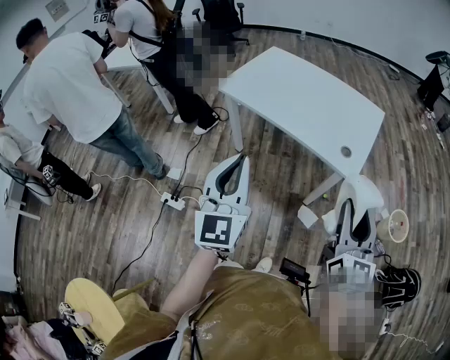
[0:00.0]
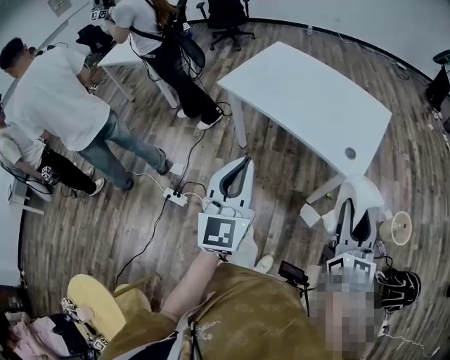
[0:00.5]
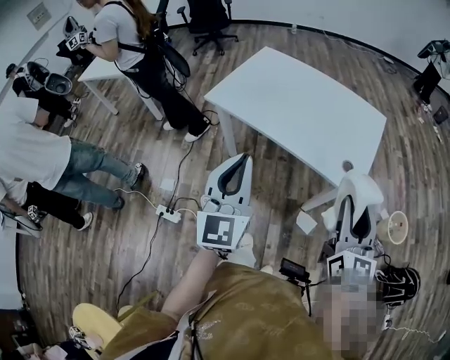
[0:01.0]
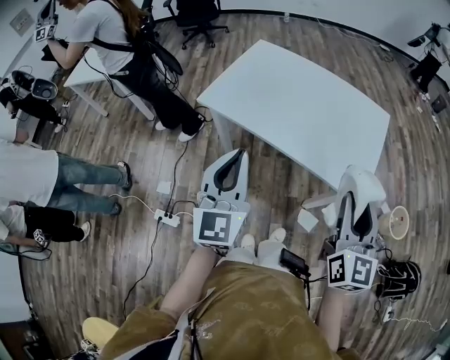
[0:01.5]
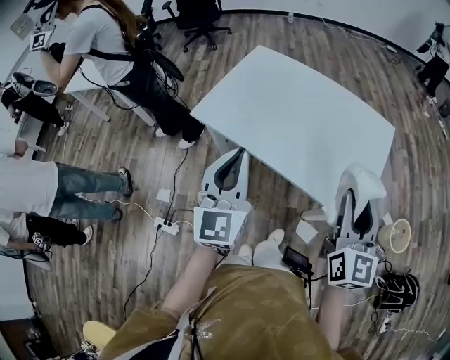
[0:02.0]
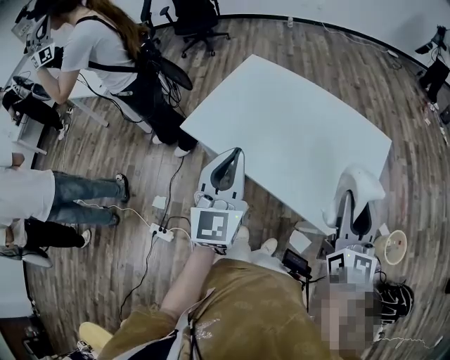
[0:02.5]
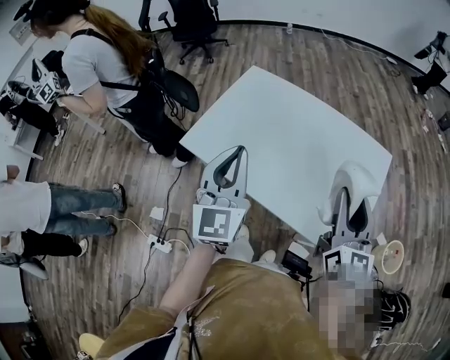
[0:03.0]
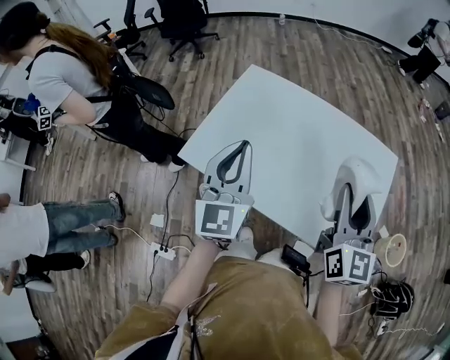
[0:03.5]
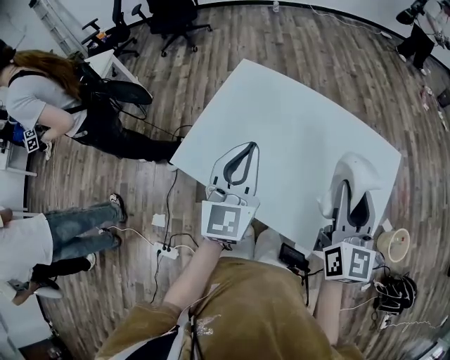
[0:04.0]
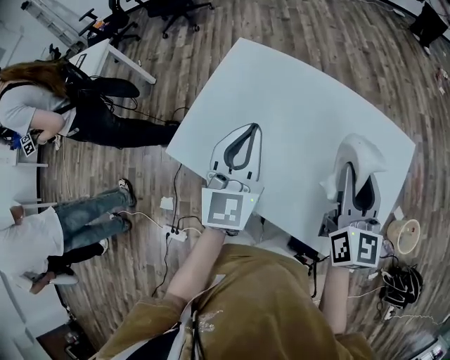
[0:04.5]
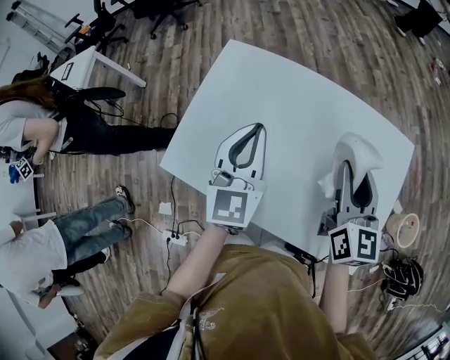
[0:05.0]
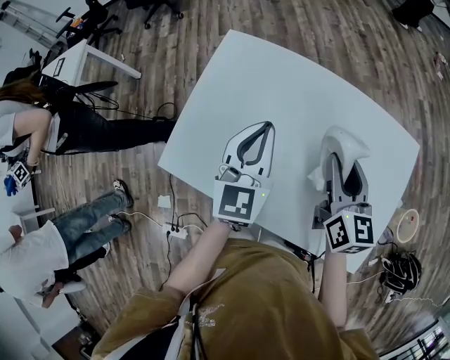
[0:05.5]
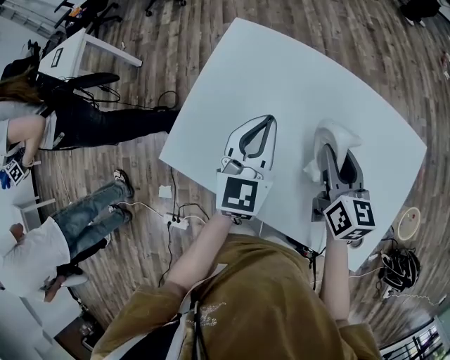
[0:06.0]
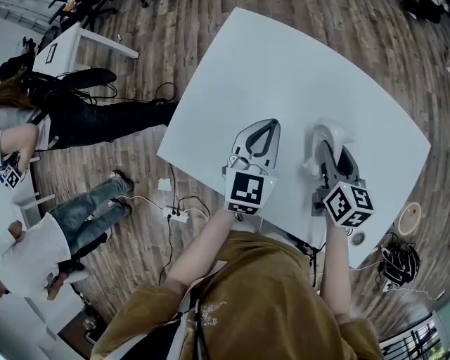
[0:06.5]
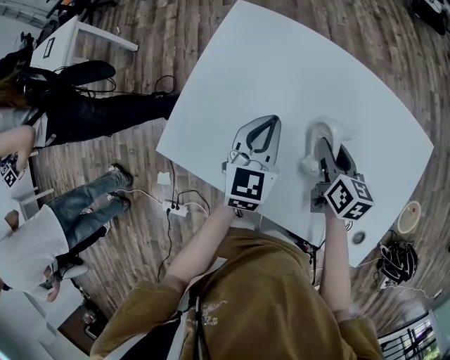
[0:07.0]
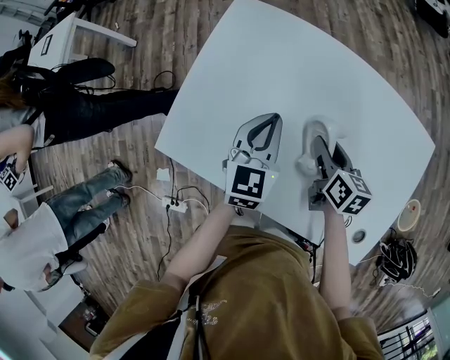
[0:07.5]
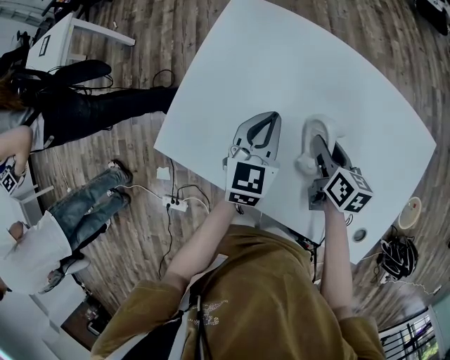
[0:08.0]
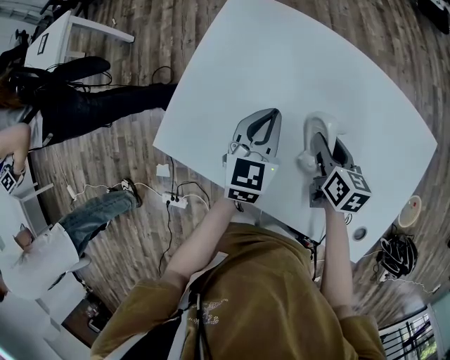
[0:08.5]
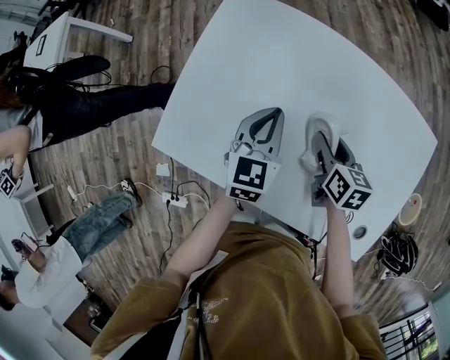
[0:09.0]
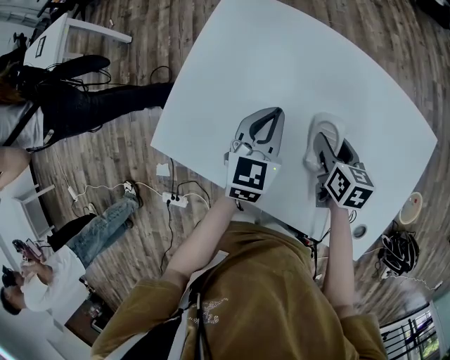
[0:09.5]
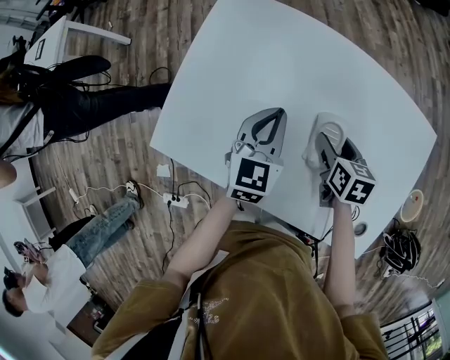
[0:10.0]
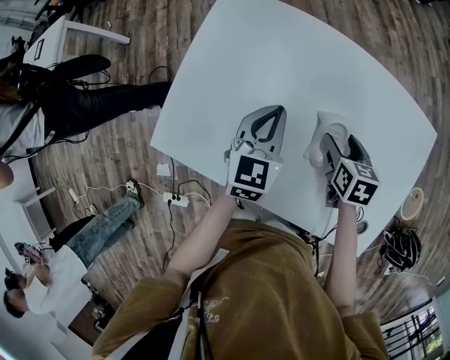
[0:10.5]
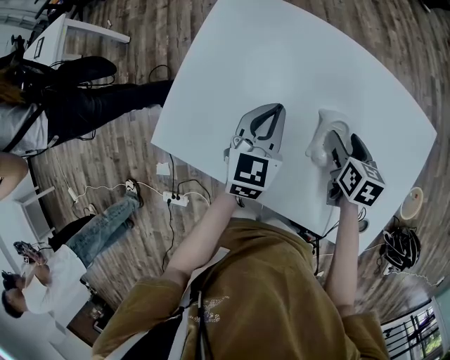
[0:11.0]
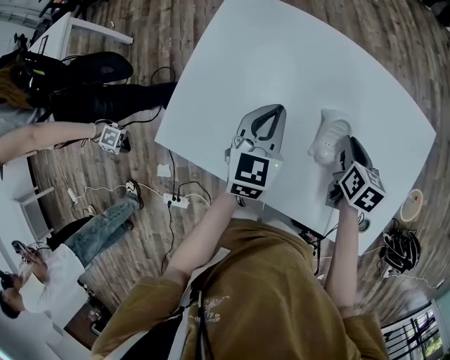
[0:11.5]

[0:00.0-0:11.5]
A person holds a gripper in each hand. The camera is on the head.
0:00.0 to 0:02.0: Both grippers move forward, roughly 30 cm.
0:02.0 to 0:04.0: Both grippers travel together forward, approximately 25 cm.
0:04.0 to 0:06.0: The right gripper travels downward and forward by roughly 20 cm, and turns by about 30 degrees. The left gripper travels forward and downward by some 20 cm.
0:06.0 to 0:07.5: Both grippers move downward, approximately 10 cm. The right gripper rotates approximately 20 degrees.
0:07.5 to 0:09.5: The grippers move only a little.
0:09.5 to 0:11.5: The right gripper travels to the right by roughly 5 cm, and closes.

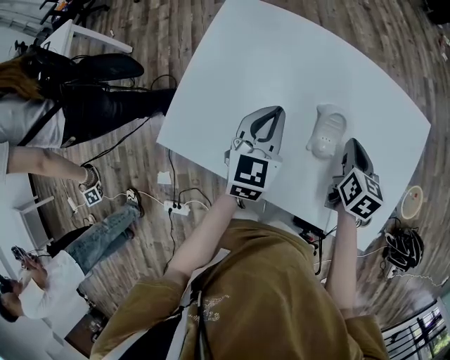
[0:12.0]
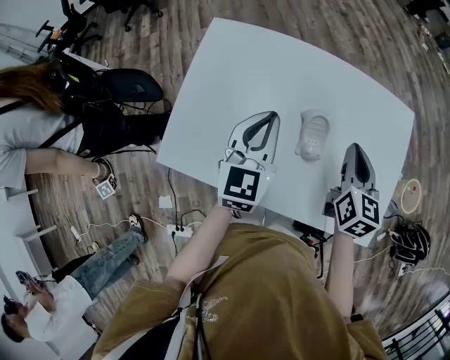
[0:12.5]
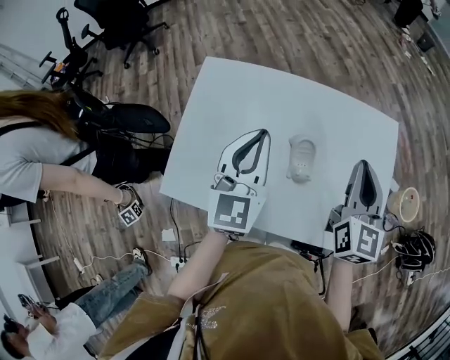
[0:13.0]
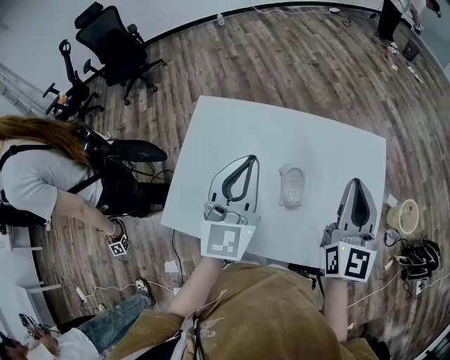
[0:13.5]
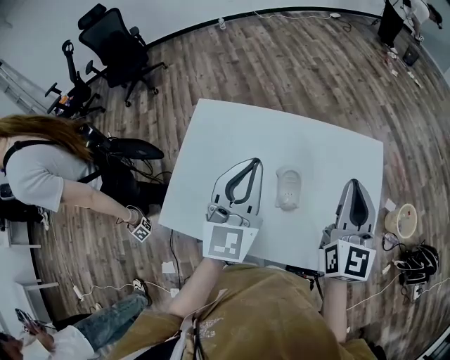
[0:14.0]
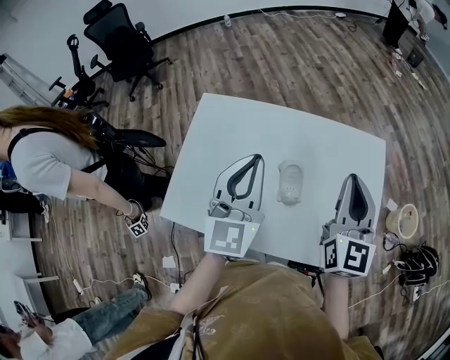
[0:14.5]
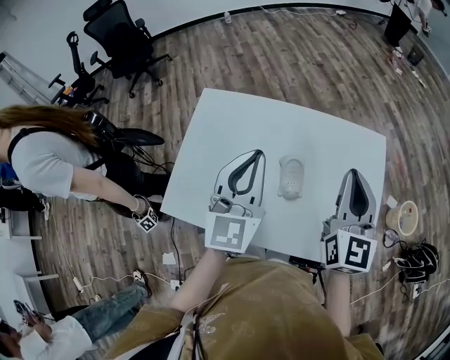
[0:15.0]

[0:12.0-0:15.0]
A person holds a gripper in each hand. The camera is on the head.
0:12.0 to 0:13.5: The grippers both shift upward by some 25 cm. The left gripper swivels roughly 20 degrees; the right gripper tips its fingers upward by some 40 degrees.
0:13.5 to 0:15.0: There are only small adjustments of the grippers.

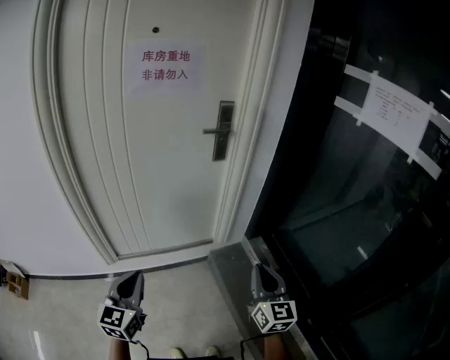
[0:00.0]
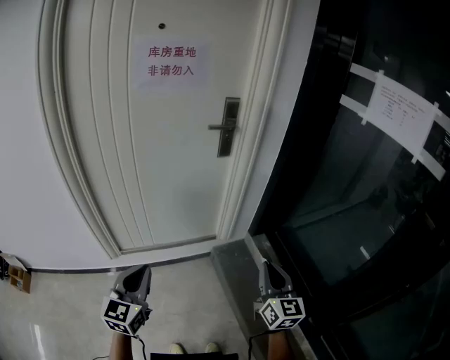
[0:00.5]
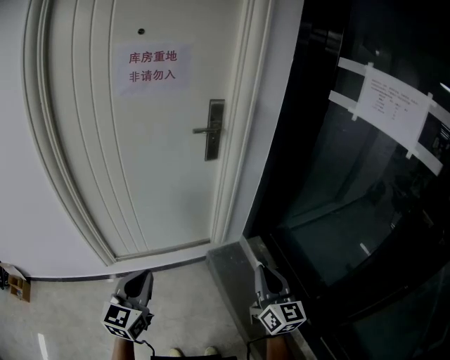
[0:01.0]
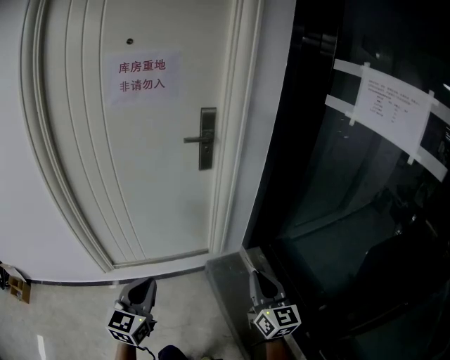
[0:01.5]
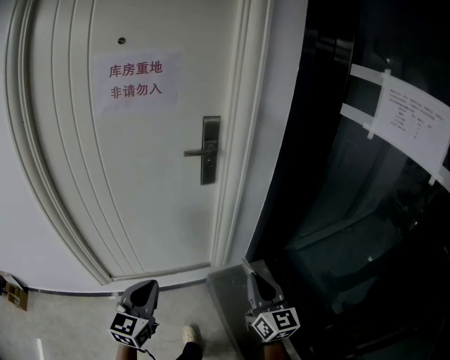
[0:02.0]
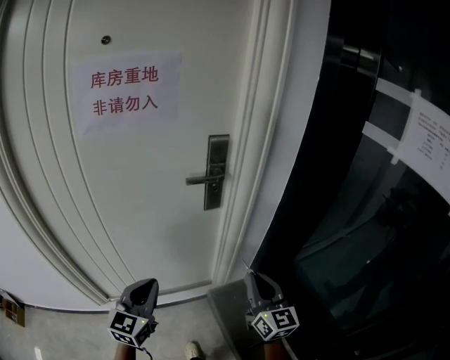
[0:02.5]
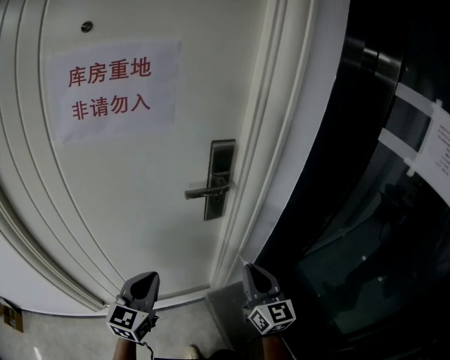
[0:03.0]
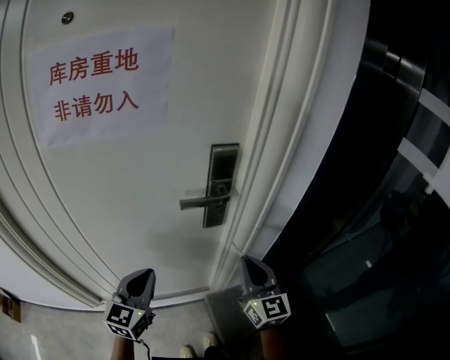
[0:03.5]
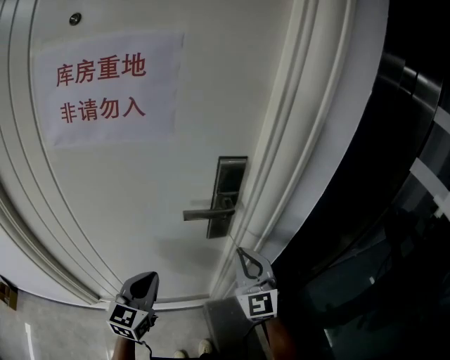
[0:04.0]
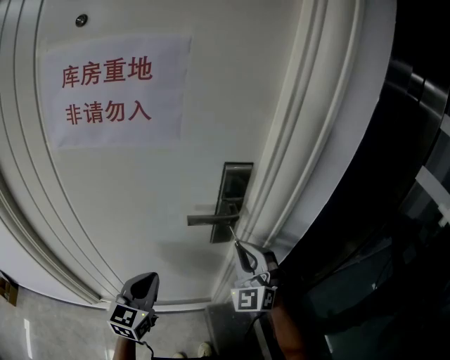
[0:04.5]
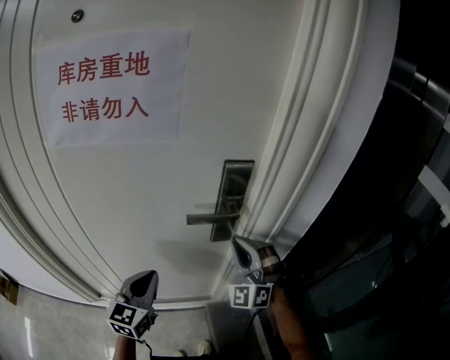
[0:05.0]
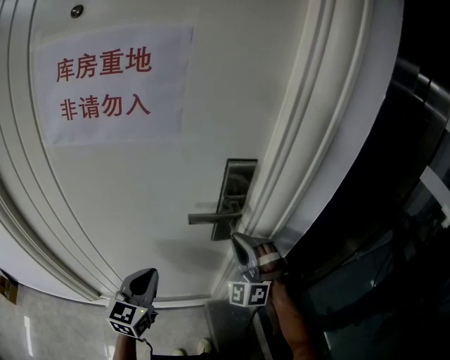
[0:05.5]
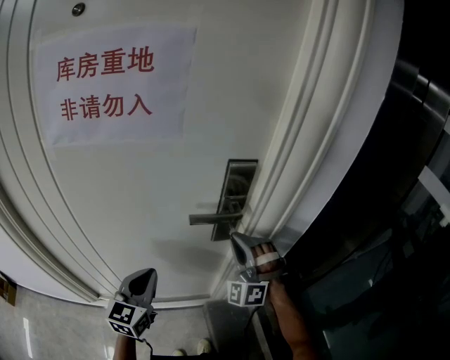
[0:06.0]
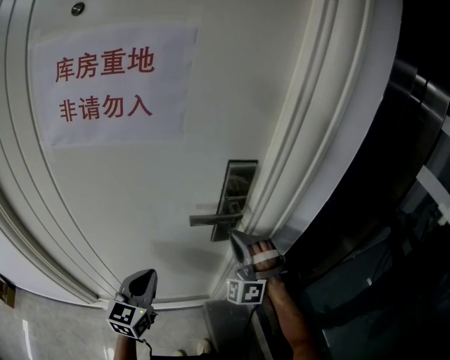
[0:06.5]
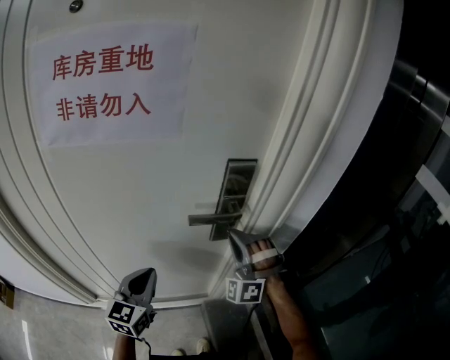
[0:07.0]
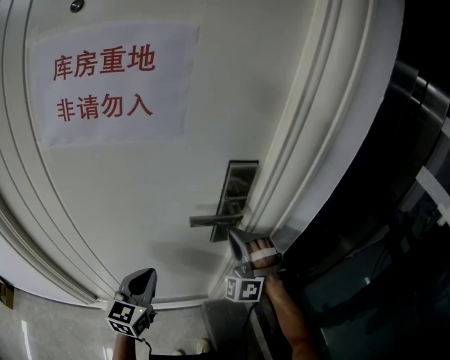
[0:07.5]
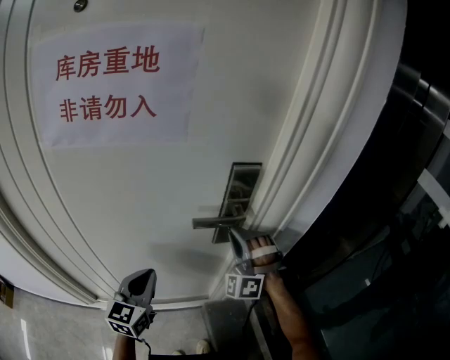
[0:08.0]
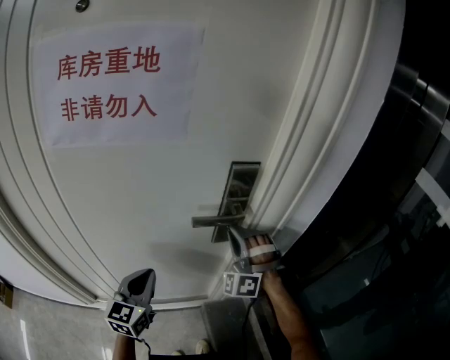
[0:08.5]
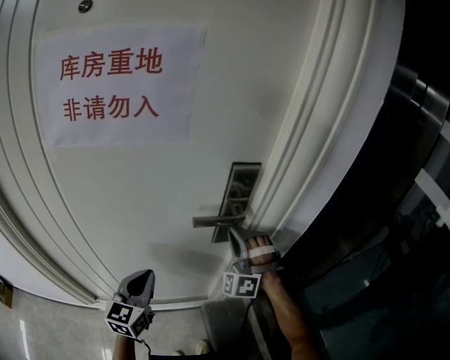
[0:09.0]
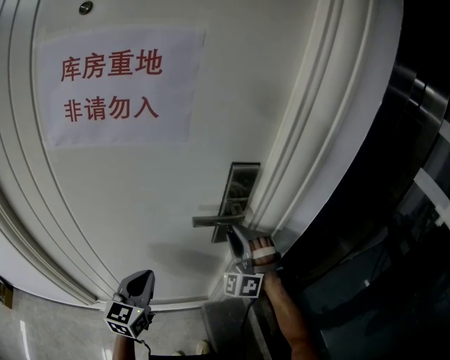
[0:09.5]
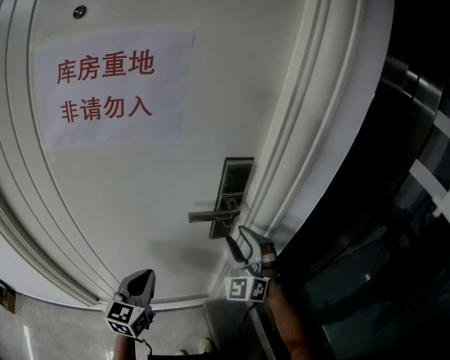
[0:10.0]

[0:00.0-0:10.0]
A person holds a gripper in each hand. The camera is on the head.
0:00.0 to 0:02.0: Both grippers travel together forward and to the right, roughly 15 cm.
0:02.0 to 0:04.0: The grippers both shift forward by approximately 35 cm. The right gripper changes its angle by some 40 degrees.
0:04.0 to 0:06.0: The right gripper moves forward, roughly 5 cm, and rolls counterclockwise, seen from behind, by about 50 degrees.
0:06.0 to 0:08.0: The grippers move only a little.
0:08.0 to 0:10.0: The right gripper rotates roughly 30 degrees, and opens up.

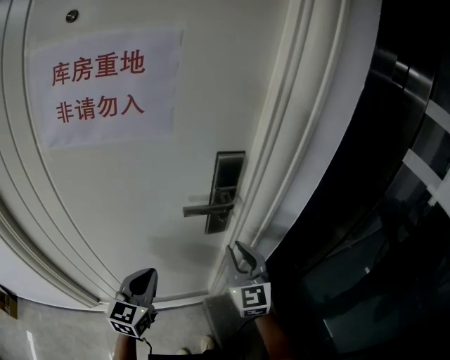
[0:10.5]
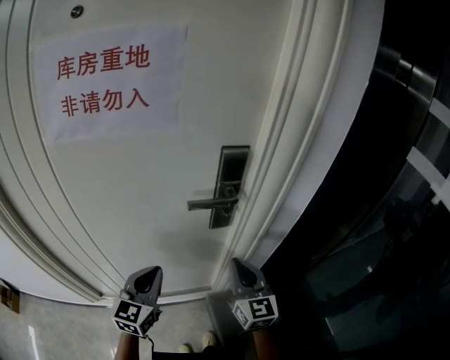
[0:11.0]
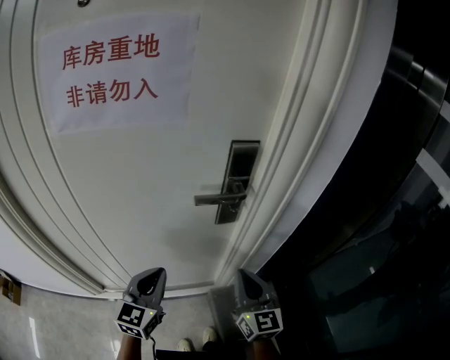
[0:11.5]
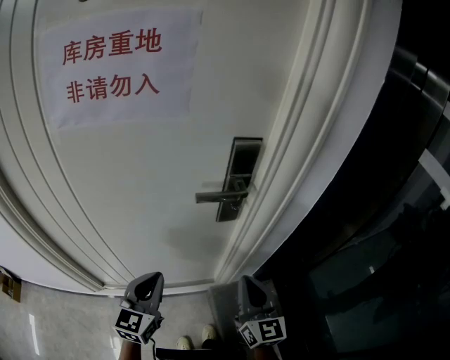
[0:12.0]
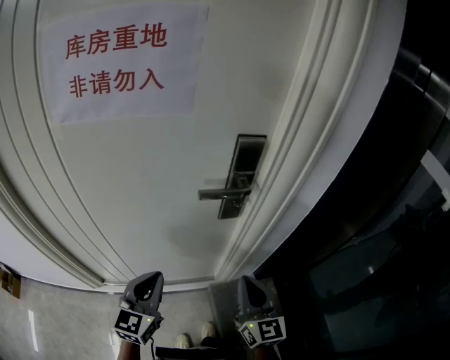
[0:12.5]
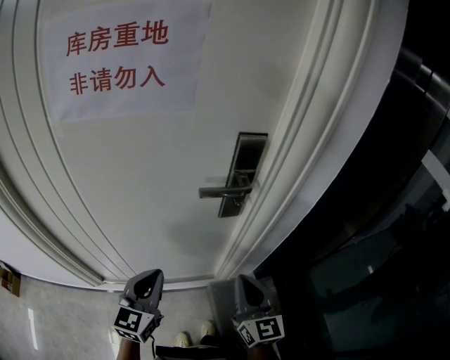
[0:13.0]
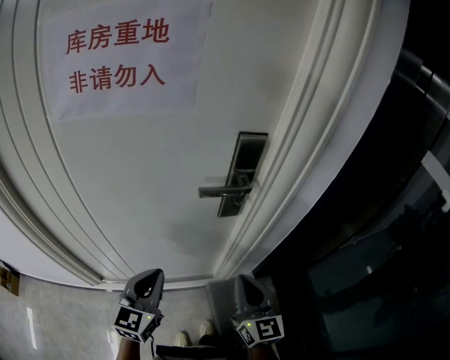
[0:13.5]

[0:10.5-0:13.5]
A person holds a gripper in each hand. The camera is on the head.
0:10.5 to 0:12.0: The right gripper heads backward, covering about 10 cm, and rotates about 20 degrees.
0:12.0 to 0:13.5: The grippers move only a little.
